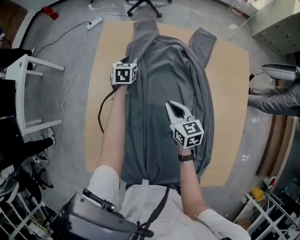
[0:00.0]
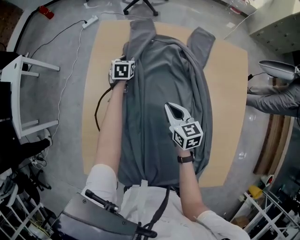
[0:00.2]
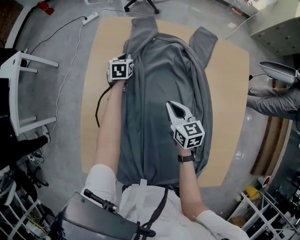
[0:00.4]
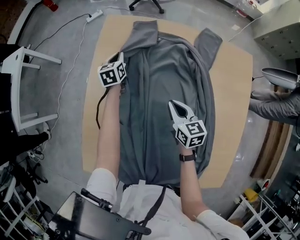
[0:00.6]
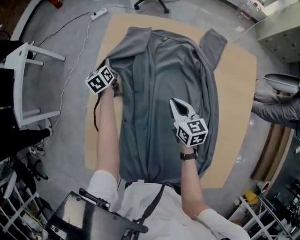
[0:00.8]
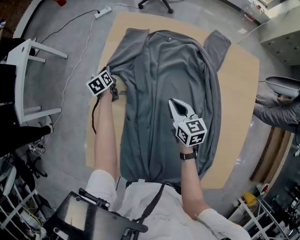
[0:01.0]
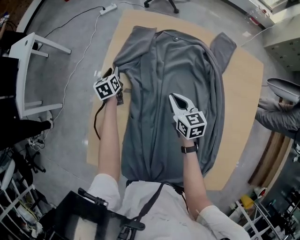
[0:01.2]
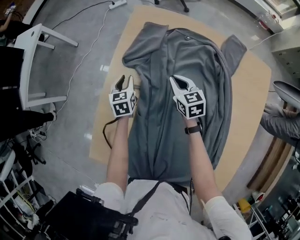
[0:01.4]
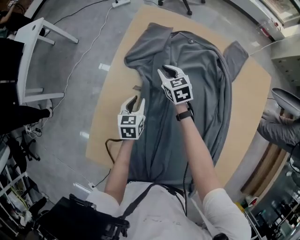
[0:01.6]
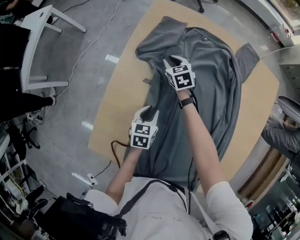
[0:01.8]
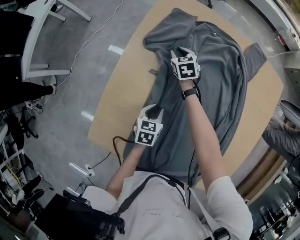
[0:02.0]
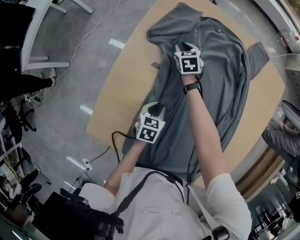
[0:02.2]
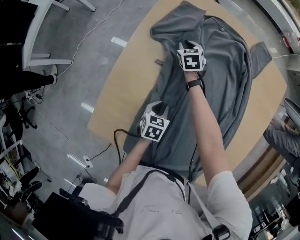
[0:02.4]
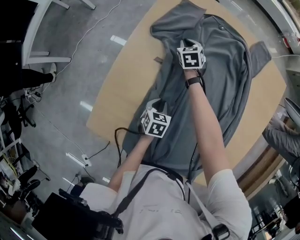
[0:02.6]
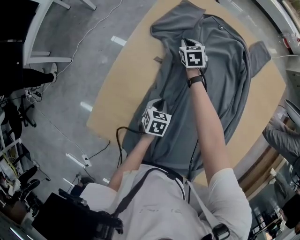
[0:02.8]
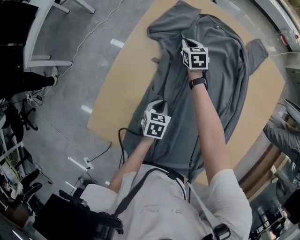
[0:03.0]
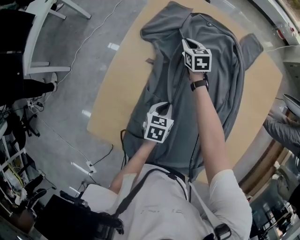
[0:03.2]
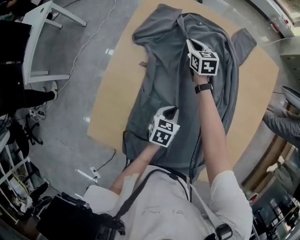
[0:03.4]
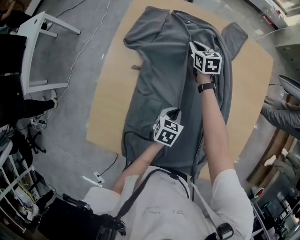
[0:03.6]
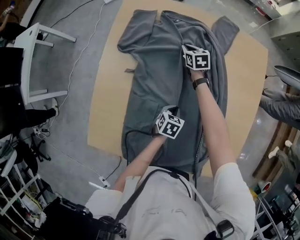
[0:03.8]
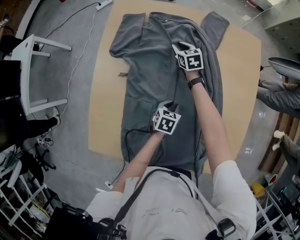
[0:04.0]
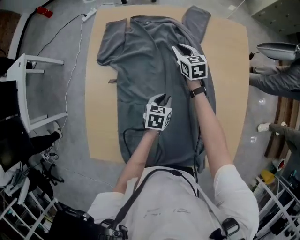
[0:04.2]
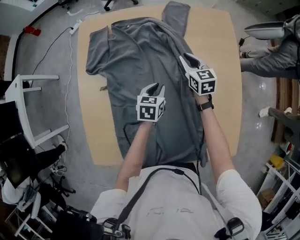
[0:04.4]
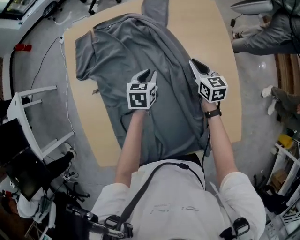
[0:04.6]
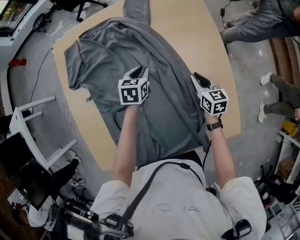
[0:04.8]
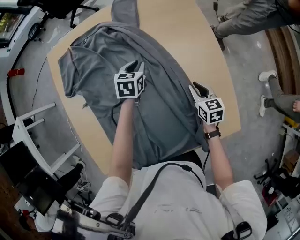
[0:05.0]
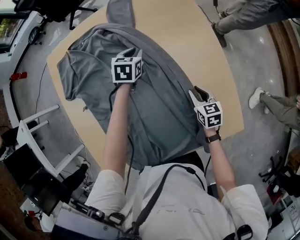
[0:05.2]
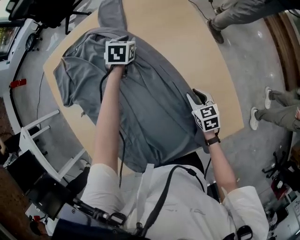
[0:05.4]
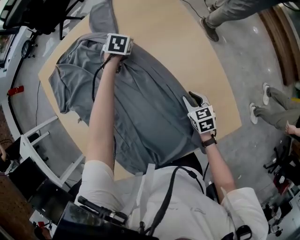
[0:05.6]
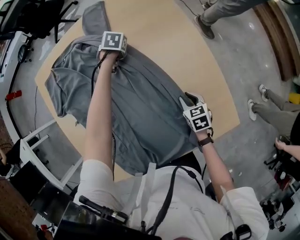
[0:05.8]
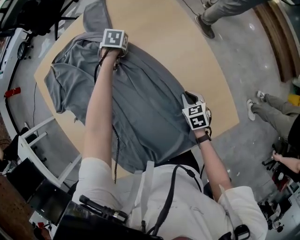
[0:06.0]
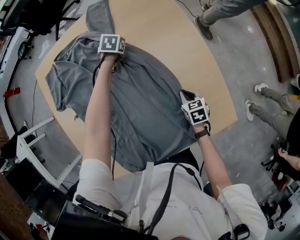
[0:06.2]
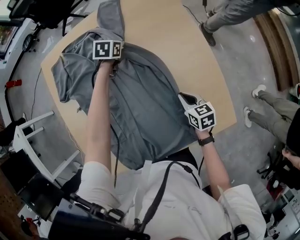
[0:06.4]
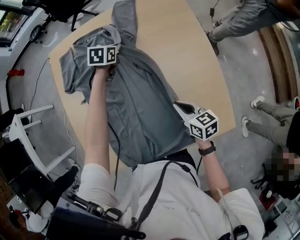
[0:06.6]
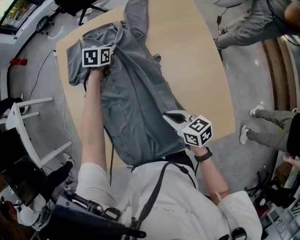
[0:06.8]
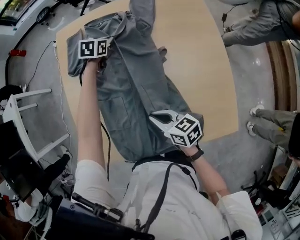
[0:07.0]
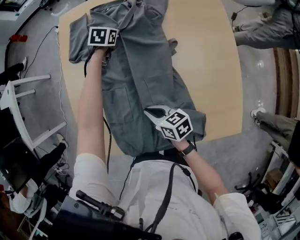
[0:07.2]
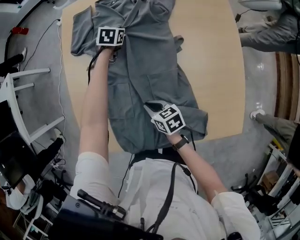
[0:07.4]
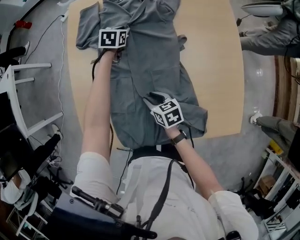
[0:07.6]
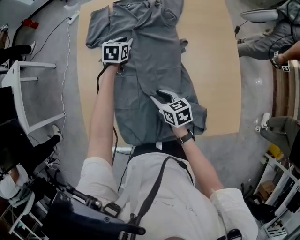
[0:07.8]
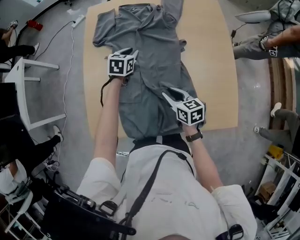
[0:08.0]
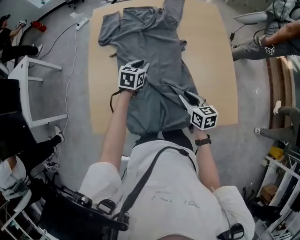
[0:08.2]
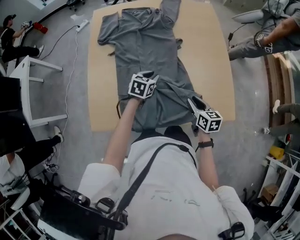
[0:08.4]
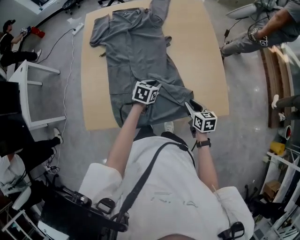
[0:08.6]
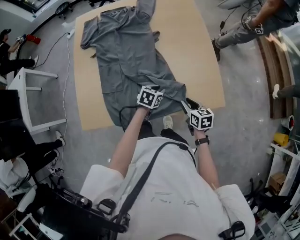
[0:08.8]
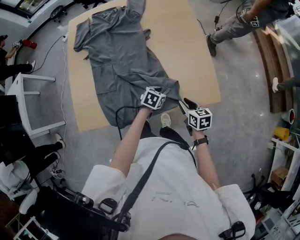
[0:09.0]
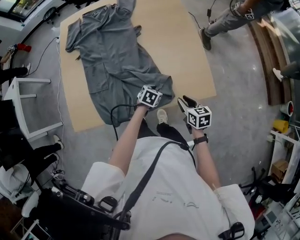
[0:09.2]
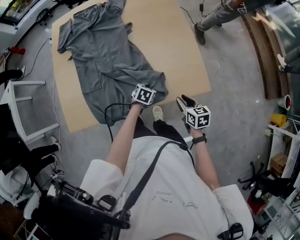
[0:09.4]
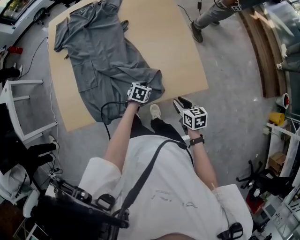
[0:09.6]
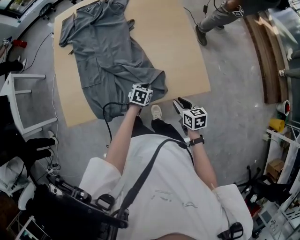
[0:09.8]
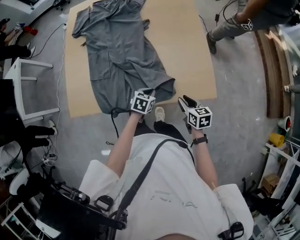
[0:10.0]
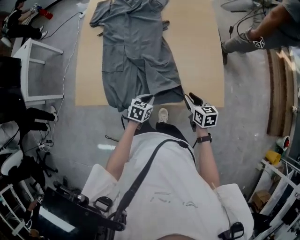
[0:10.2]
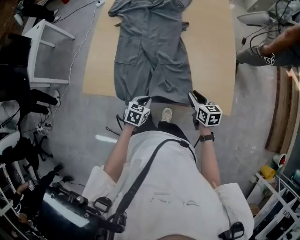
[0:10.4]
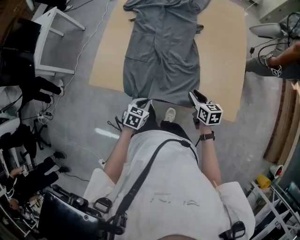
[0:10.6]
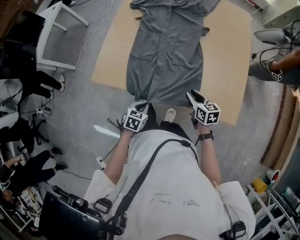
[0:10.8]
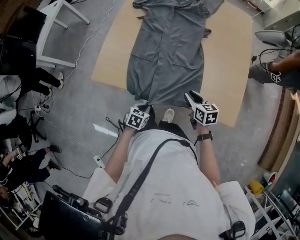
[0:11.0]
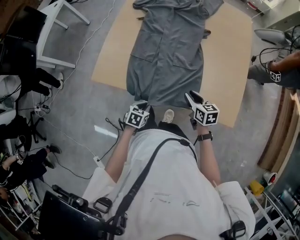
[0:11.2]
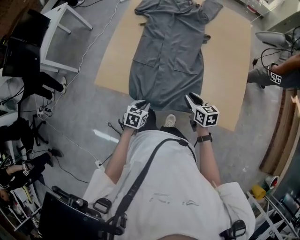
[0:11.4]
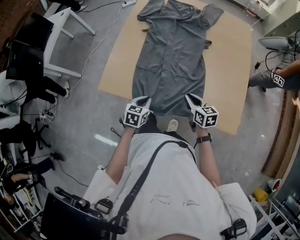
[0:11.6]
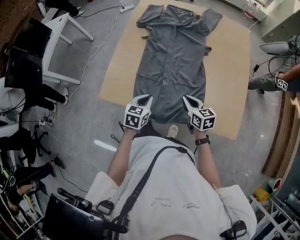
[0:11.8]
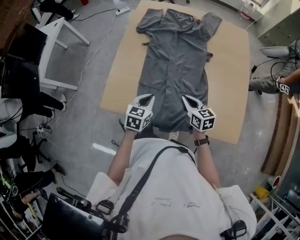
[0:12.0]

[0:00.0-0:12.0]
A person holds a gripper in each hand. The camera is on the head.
0:00.0 to 0:01.6: The left gripper moves backward and to the left, roughly 25 cm, and closes, then opens again; the right gripper is displaced forward, to the left and downward by approximately 20 cm, and rotates approximately 20 degrees.
0:01.6 to 0:03.0: The right gripper moves some 5 cm, while the left gripper goes approximately 15 cm backward, and closes its fingers.
0:03.0 to 0:04.4: The left gripper moves to the right and forward, approximately 20 cm, and rotates approximately 30 degrees, while the right gripper shifts about 35 cm to the right, and turns by about 30 degrees.
0:04.4 to 0:06.0: The right gripper shifts roughly 35 cm backward, to the right and downward, and points its fingers roughly 30 degrees further downward. Meanwhile the left gripper moves forward, to the right and downward, some 25 cm, and changes its angle by approximately 40 degrees.
0:06.0 to 0:07.6: The right gripper goes upward and returns, approximately 15 cm each way, and rotates some 30 degrees. The left gripper shifts by about 30 cm, and swivels about 30 degrees.
0:07.6 to 0:09.0: The right gripper ends up some 35 cm from where it was, and rotates approximately 20 degrees, while the left gripper moves roughly 10 cm upward and comes back, and changes its angle by some 30 degrees.
0:09.0 to 0:10.4: The left gripper travels backward and to the left by about 20 cm, turns by roughly 20 degrees, and closes up. Meanwhile the right gripper travels to the right and back again, roughly 5 cm each way.
0:10.4 to 0:12.0: The left gripper heads forward, to the left and upward, covering some 20 cm, while the right gripper goes roughly 20 cm to the left and forward.

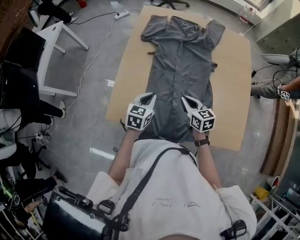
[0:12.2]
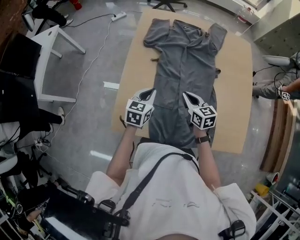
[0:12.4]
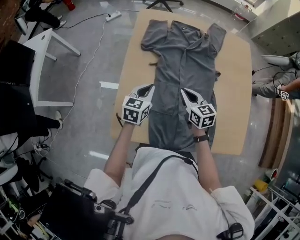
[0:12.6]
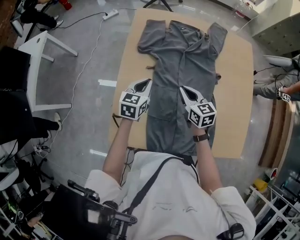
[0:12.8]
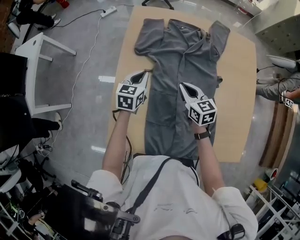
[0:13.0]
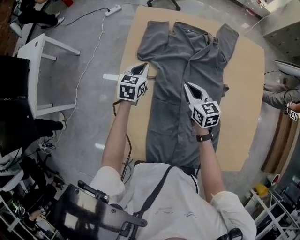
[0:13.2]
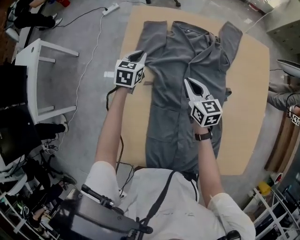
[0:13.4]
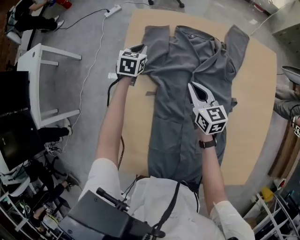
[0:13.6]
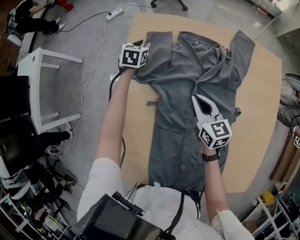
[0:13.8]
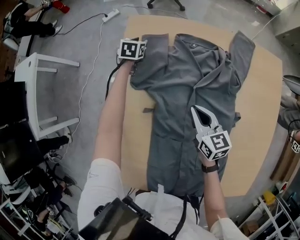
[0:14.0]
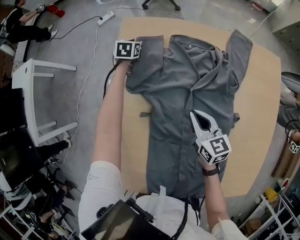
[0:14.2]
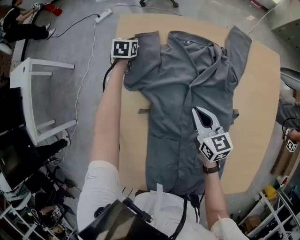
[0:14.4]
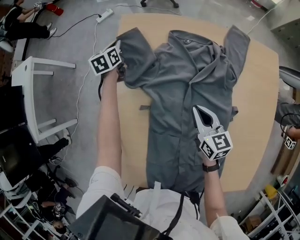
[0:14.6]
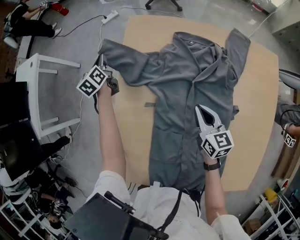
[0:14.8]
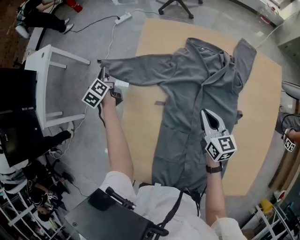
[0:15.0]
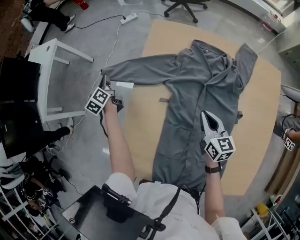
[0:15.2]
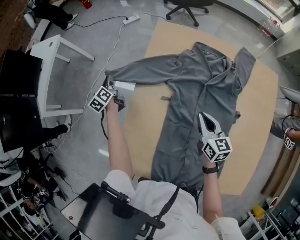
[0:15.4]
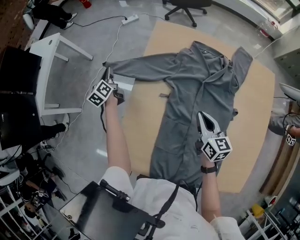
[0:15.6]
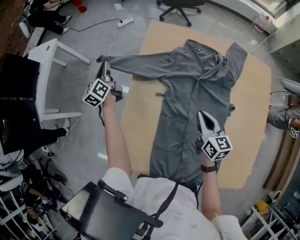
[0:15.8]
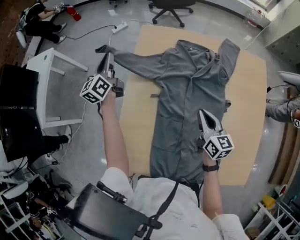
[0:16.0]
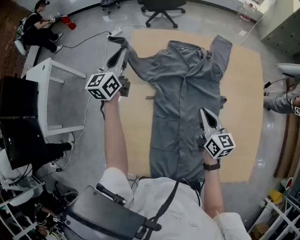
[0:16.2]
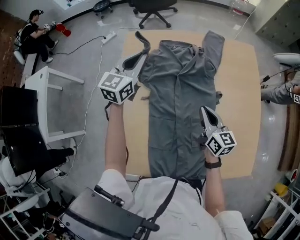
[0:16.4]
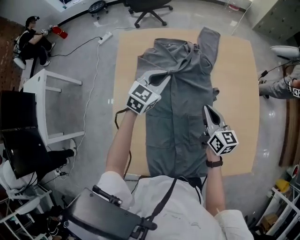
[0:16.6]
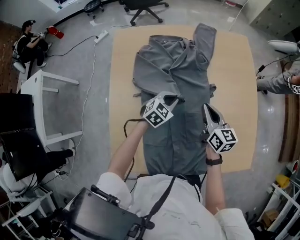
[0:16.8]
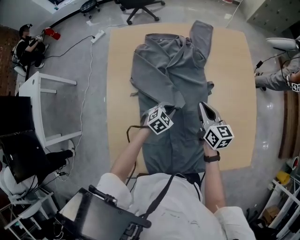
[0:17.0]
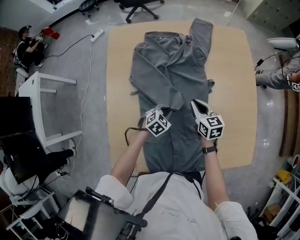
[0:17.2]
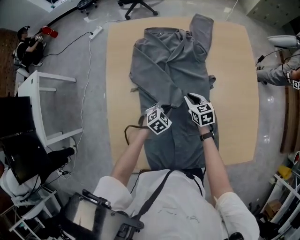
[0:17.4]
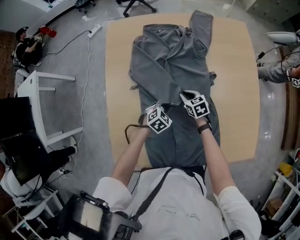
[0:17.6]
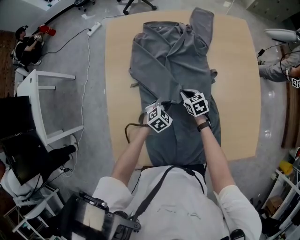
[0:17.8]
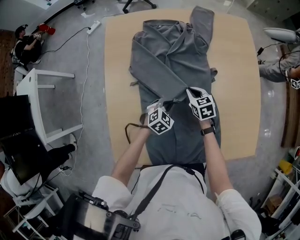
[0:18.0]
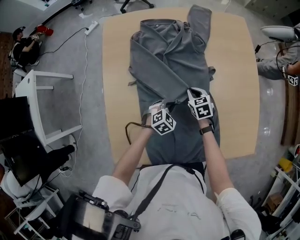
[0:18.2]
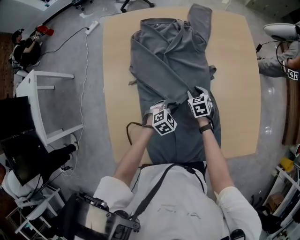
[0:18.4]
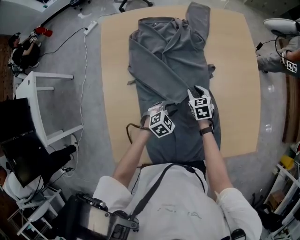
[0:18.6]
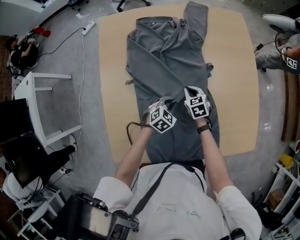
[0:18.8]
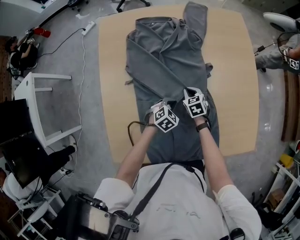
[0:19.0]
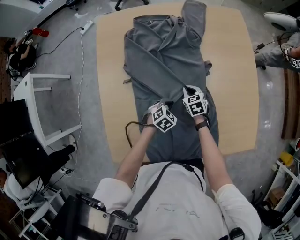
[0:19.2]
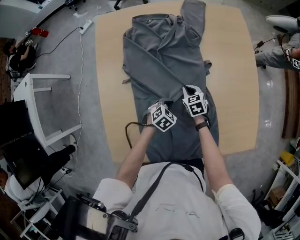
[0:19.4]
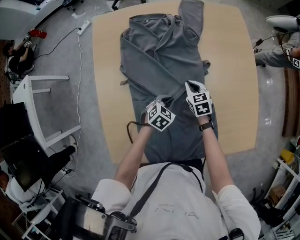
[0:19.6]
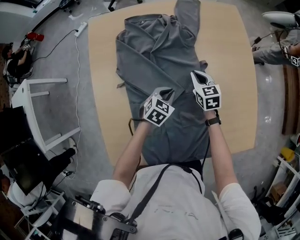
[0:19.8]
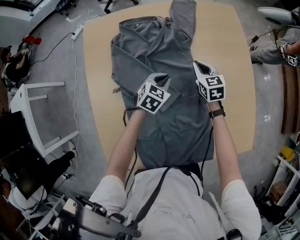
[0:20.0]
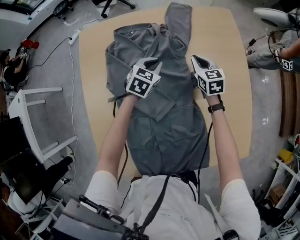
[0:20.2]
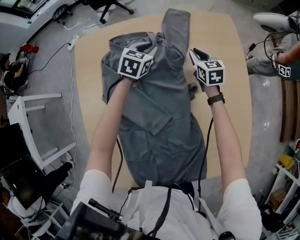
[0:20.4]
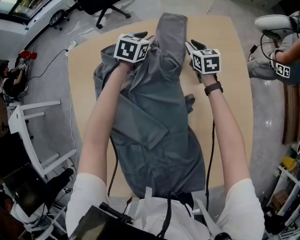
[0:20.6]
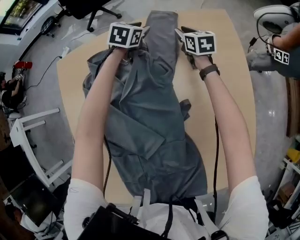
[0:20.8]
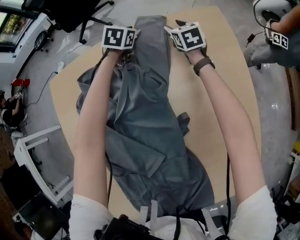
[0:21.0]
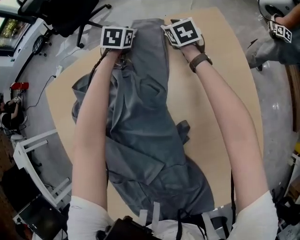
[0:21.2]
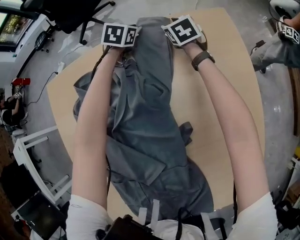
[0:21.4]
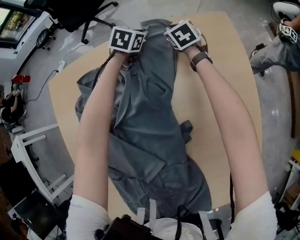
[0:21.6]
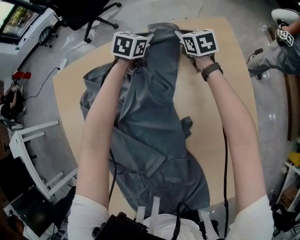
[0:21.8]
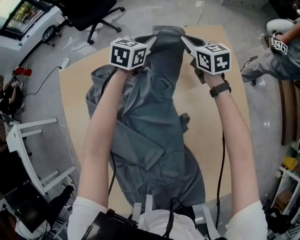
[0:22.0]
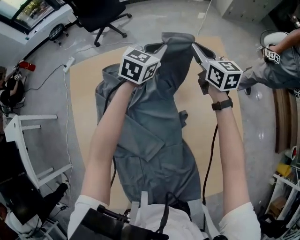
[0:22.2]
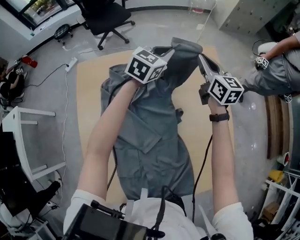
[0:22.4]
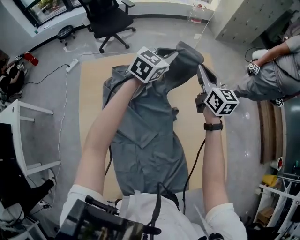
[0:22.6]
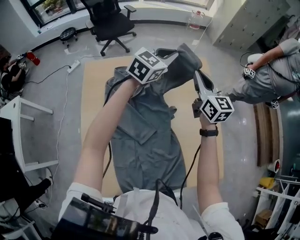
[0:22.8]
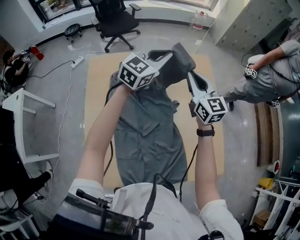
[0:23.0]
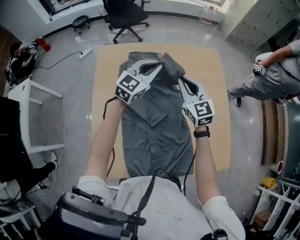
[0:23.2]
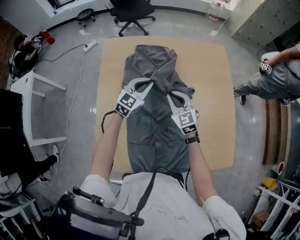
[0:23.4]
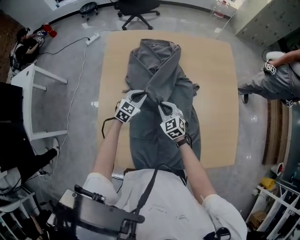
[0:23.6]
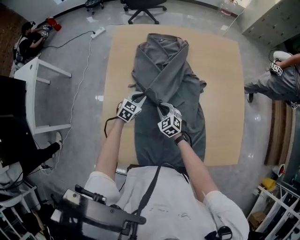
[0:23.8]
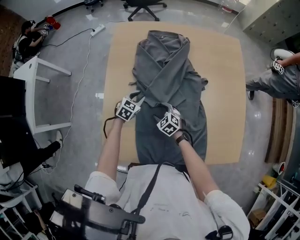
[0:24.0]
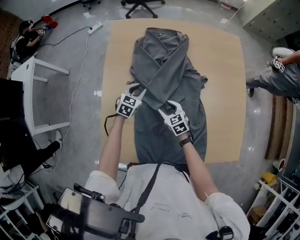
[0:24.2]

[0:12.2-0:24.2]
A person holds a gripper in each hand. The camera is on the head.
0:12.2 to 0:13.8: The left gripper is displaced forward by roughly 60 cm, and opens. Meanwhile the right gripper goes about 35 cm forward.
0:13.8 to 0:15.2: The right gripper is displaced backward by approximately 5 cm. The left gripper heads to the left and backward, covering approximately 35 cm, rotates around the line of its fingers by approximately 50 degrees, counterclockwise from behind, and closes.
0:15.2 to 0:16.6: The left gripper ends up roughly 50 cm from where it was, and turns by about 90 degrees. The right gripper moves roughly 15 cm.
0:16.6 to 0:18.2: The left gripper heads downward, backward and to the right, covering roughly 30 cm, and turns by some 30 degrees, while the right gripper travels downward by approximately 20 cm, and points its fingers some 30 degrees further downward.
0:18.2 to 0:19.8: The two grippers go roughly 5 cm forward. The left gripper opens, then closes again. Meanwhile the right gripper opens, then closes again.
0:19.8 to 0:21.2: The two grippers travel together, forward, roughly 50 cm. The right gripper opens; the left gripper opens up.
0:21.2 to 0:22.6: The grippers both shift upward and backward by approximately 40 cm. The right gripper tips its fingers upward by approximately 30 degrees, and closes up, while the left gripper tilts its fingers roughly 30 degrees upward, and closes.
0:22.6 to 0:24.2: The two grippers travel together, about 40 cm. The right gripper angles its fingers downward, by roughly 30 degrees, and opens. The left gripper swivels approximately 30 degrees, and opens its fingers.
